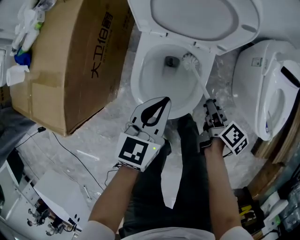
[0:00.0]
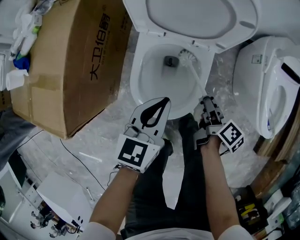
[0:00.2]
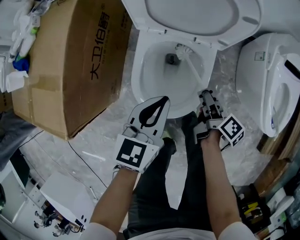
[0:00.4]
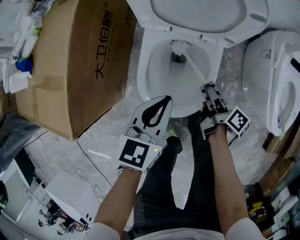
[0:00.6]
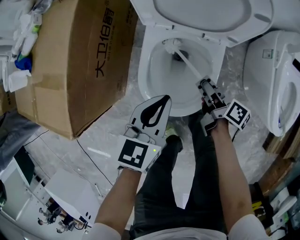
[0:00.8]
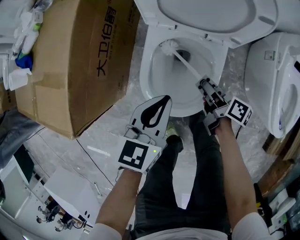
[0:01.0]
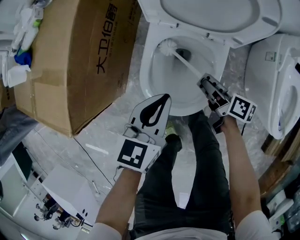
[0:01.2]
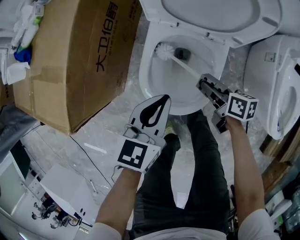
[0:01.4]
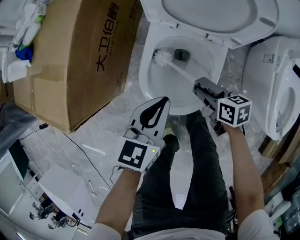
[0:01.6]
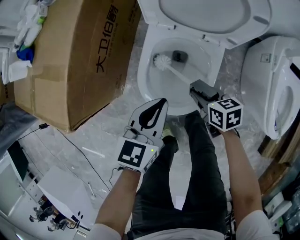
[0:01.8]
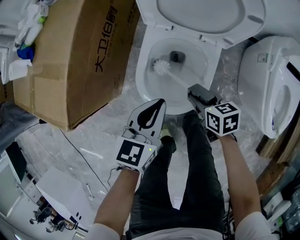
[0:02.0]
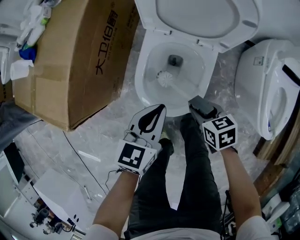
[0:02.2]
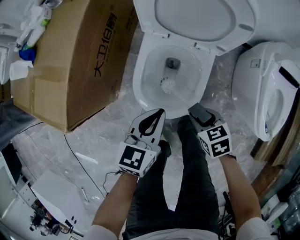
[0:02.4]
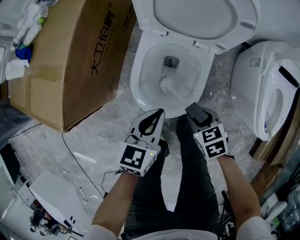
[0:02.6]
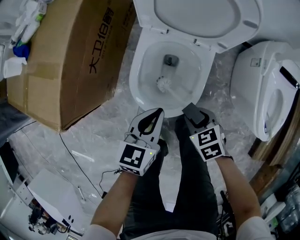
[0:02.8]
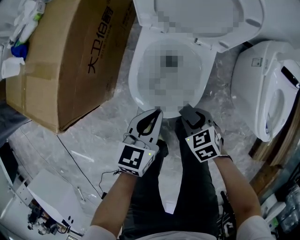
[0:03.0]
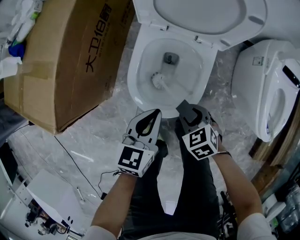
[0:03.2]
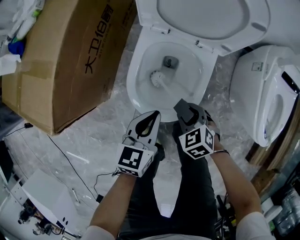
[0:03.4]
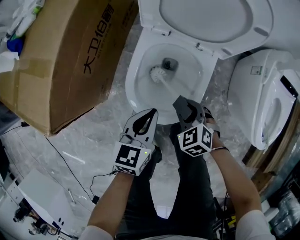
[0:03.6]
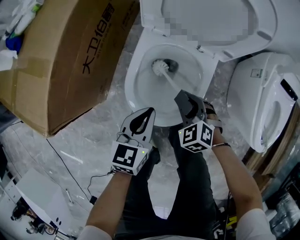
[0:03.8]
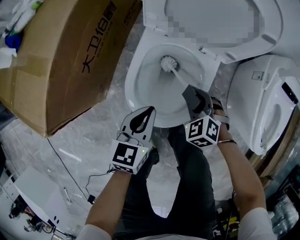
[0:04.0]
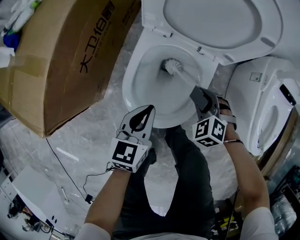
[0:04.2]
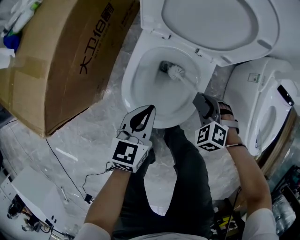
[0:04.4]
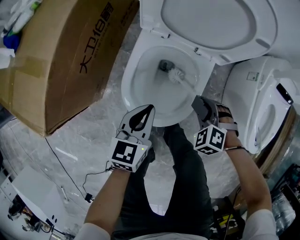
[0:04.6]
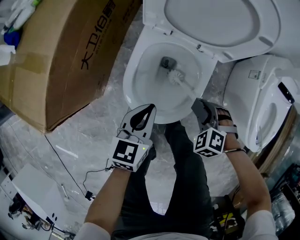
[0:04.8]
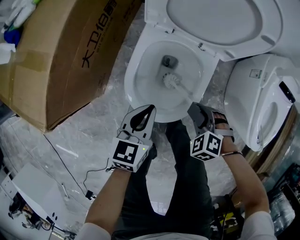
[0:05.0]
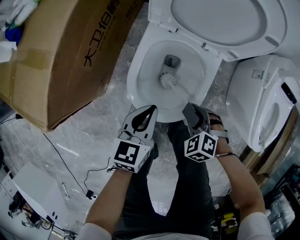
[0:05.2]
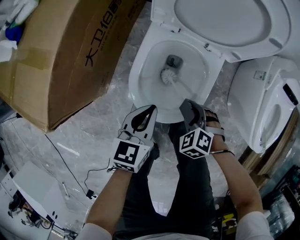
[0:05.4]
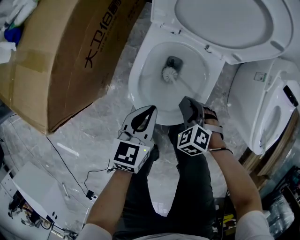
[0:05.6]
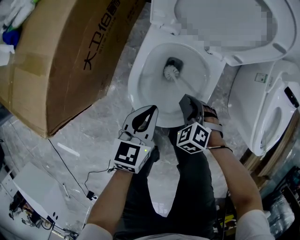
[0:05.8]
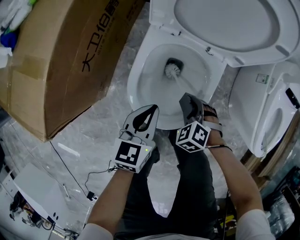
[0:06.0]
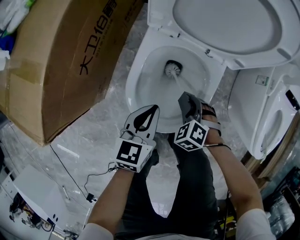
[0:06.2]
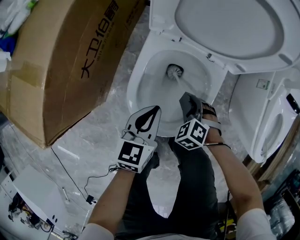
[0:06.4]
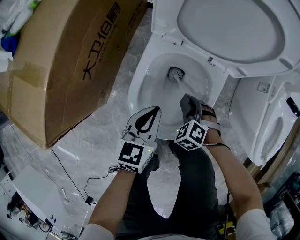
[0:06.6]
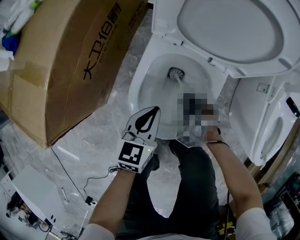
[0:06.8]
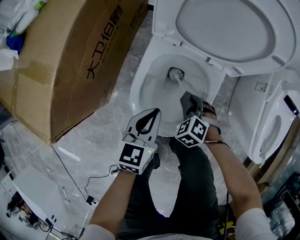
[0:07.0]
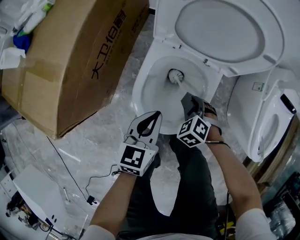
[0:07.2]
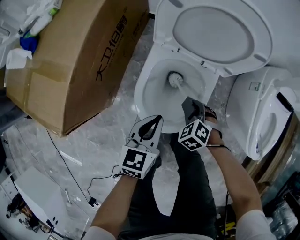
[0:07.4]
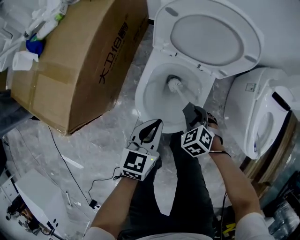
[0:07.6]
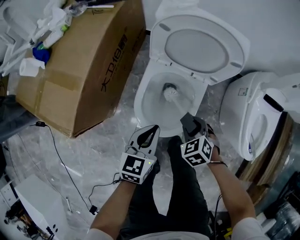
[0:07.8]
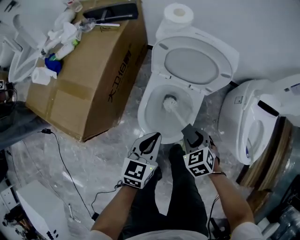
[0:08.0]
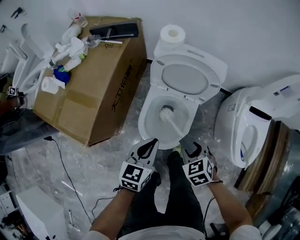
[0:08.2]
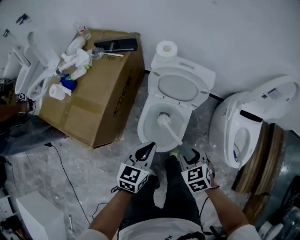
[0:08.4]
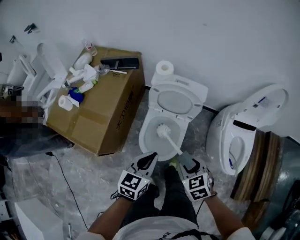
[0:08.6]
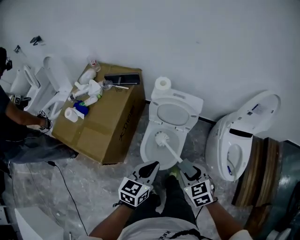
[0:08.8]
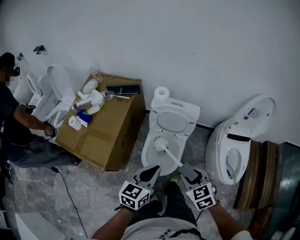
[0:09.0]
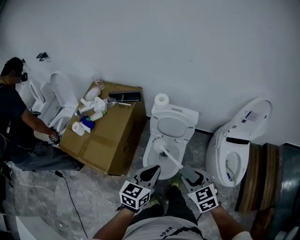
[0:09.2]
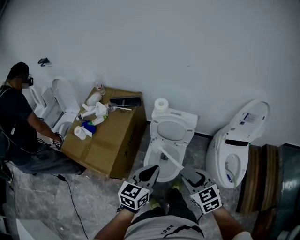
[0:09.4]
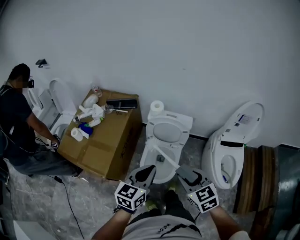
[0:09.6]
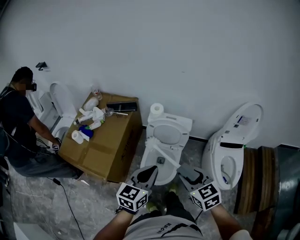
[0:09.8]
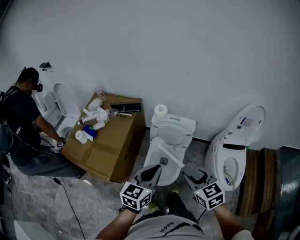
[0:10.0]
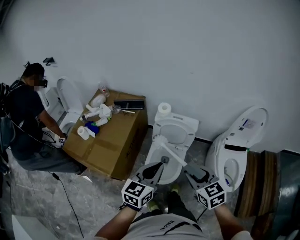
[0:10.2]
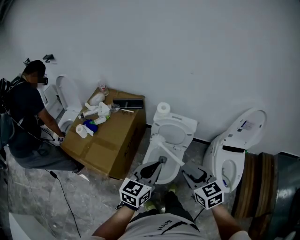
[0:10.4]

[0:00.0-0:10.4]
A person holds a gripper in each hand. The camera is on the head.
0:00.0 to 0:01.4: The right gripper shifts about 10 cm to the left, forward and downward, and swivels approximately 40 degrees.
0:01.4 to 0:03.0: The right gripper shifts roughly 10 cm backward, and rolls counterclockwise, seen from behind, by about 50 degrees, while the left gripper is displaced backward by some 5 cm.
0:03.0 to 0:04.4: The left gripper ends up about 5 cm from where it was; the right gripper goes roughly 10 cm forward and to the right, and swivels approximately 40 degrees.
0:04.4 to 0:06.0: The right gripper moves to the left and downward, some 10 cm.
0:06.0 to 0:07.4: The grippers both shift upward by some 5 cm.
0:07.4 to 0:09.0: The two grippers go some 50 cm upward. The right gripper swivels some 40 degrees.
0:09.0 to 0:10.4: Both grippers travel together upward, some 10 cm.

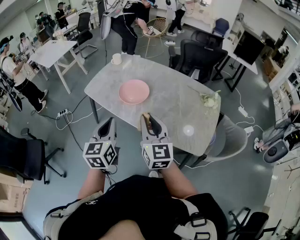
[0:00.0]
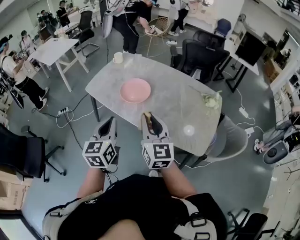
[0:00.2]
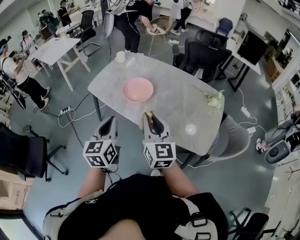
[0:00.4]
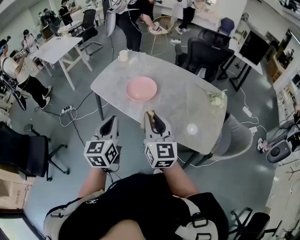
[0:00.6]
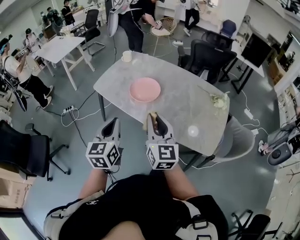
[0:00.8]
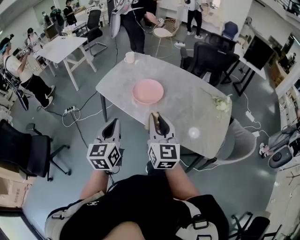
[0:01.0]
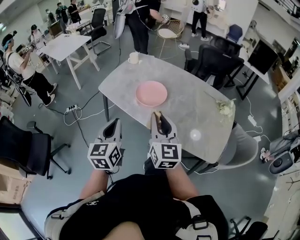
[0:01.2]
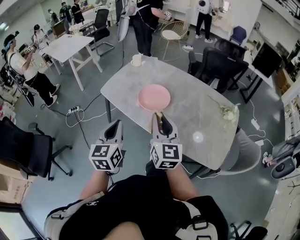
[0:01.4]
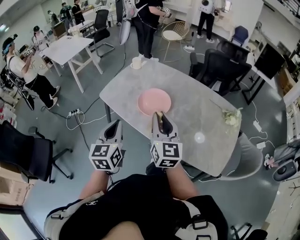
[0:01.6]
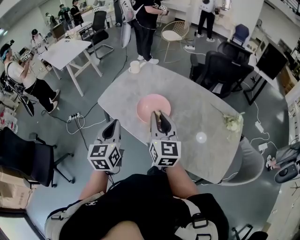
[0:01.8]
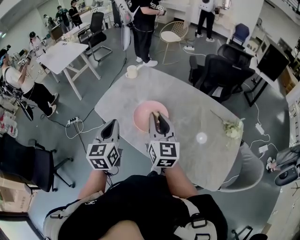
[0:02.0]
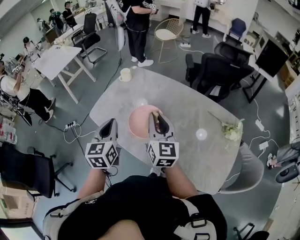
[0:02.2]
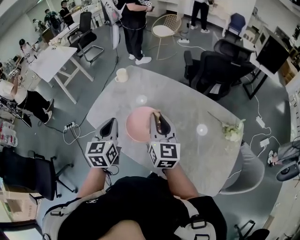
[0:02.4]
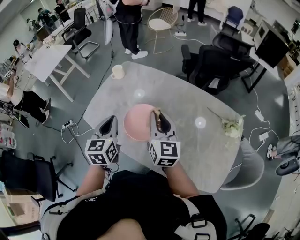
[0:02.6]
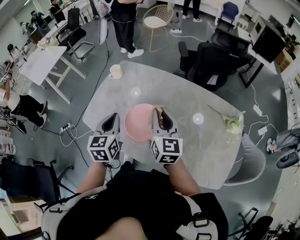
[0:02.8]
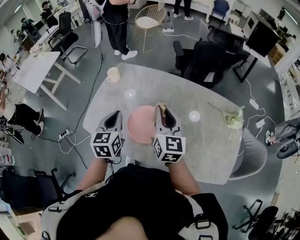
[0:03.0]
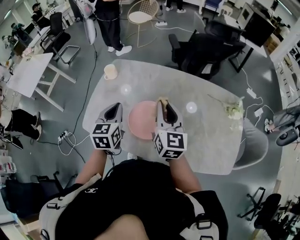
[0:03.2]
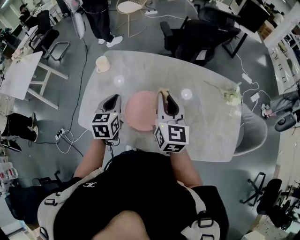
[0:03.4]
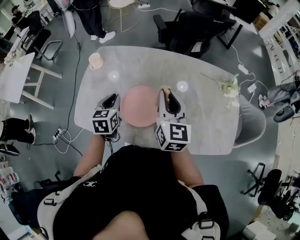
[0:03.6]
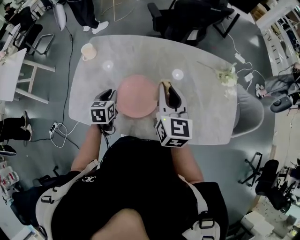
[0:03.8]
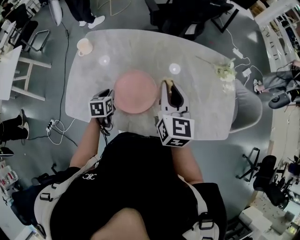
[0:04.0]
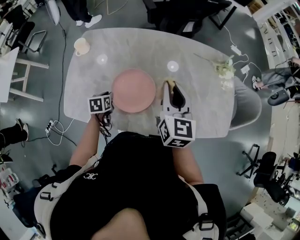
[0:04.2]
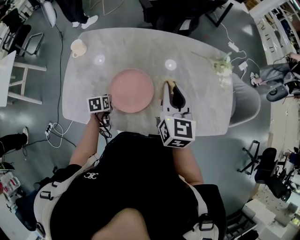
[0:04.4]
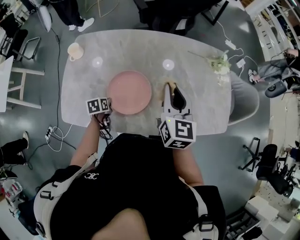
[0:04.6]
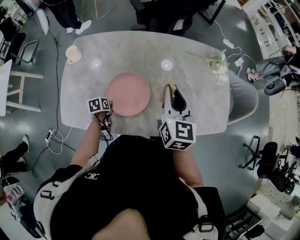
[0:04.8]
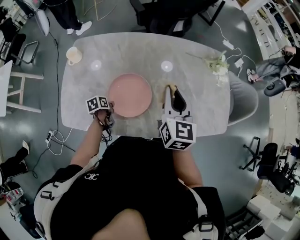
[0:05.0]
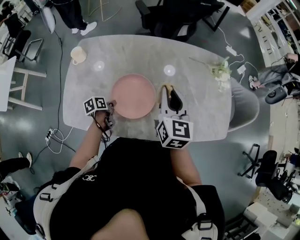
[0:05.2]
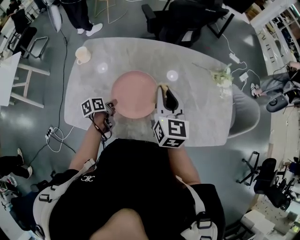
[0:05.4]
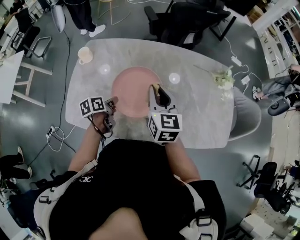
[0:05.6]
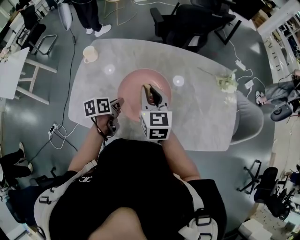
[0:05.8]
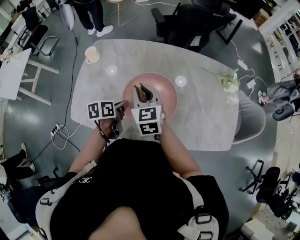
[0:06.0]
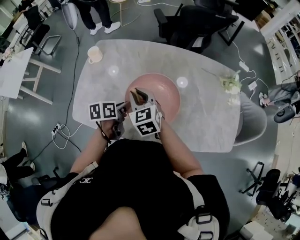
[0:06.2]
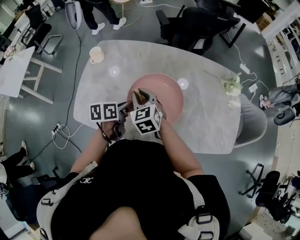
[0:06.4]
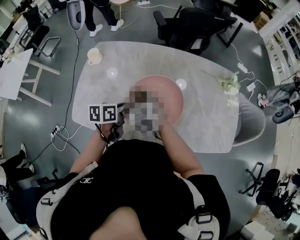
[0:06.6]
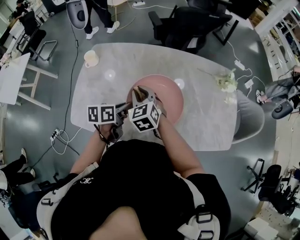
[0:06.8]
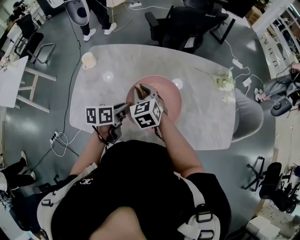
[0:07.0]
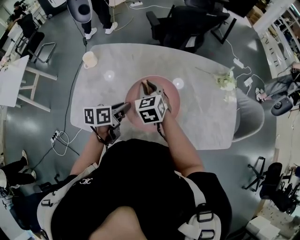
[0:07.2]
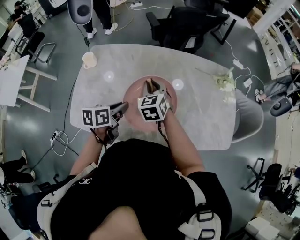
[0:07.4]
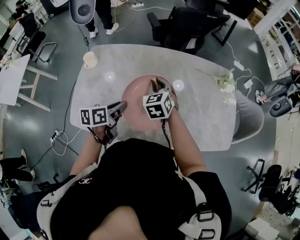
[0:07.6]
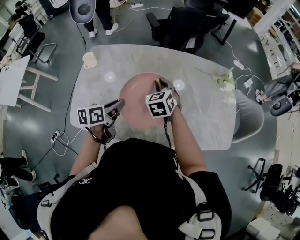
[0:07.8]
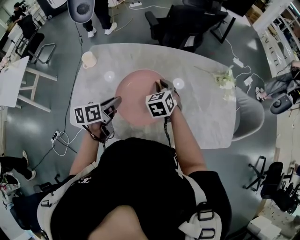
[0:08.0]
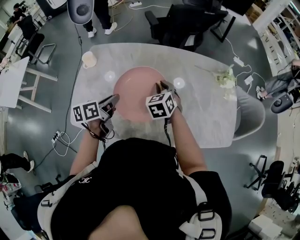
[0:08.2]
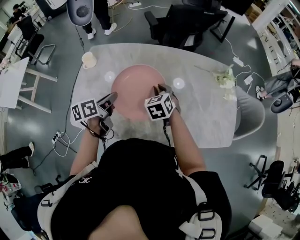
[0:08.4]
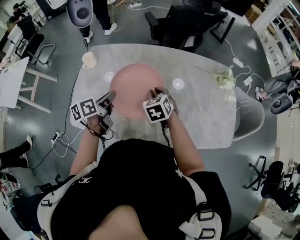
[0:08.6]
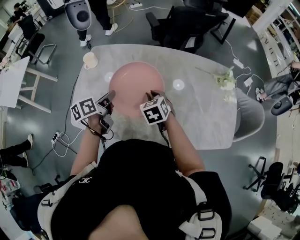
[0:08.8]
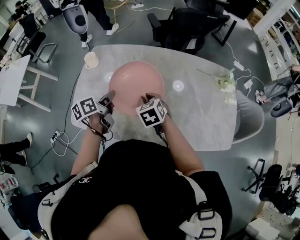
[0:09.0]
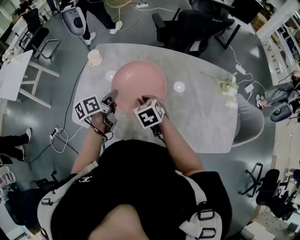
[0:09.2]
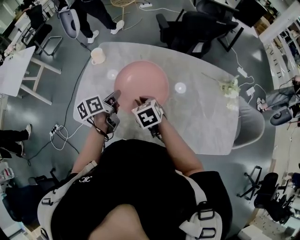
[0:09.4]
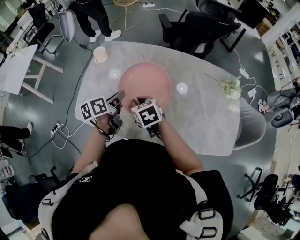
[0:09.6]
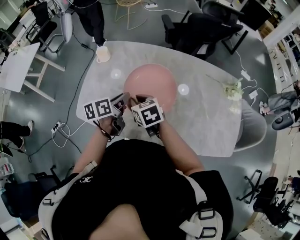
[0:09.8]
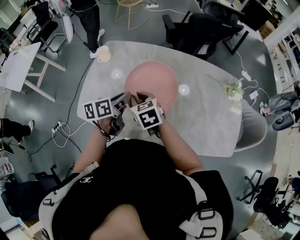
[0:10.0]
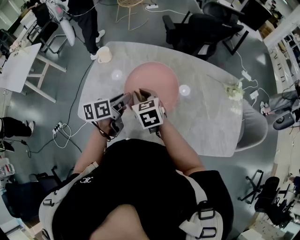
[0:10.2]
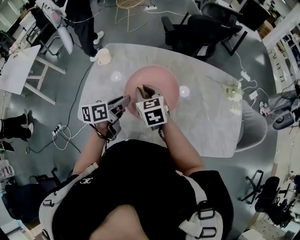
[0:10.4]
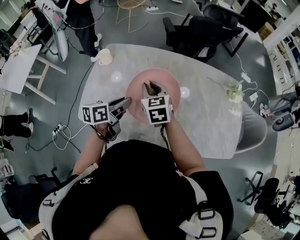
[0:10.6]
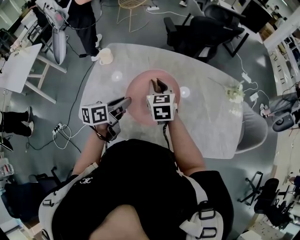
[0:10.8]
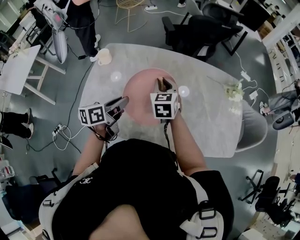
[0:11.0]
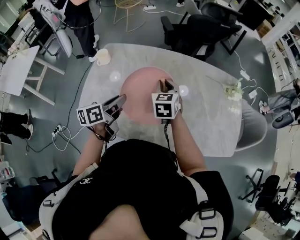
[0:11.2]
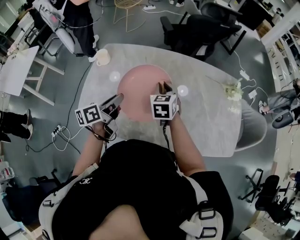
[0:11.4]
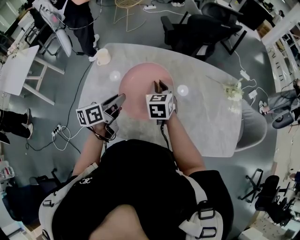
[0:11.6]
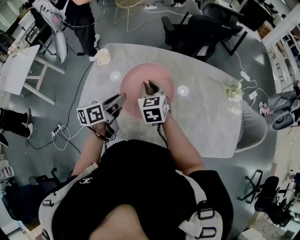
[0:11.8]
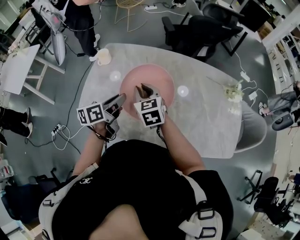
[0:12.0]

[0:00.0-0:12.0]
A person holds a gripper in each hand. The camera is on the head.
0:00.0 to 0:01.6: The grippers both shift forward and to the left by approximately 15 cm.
0:01.6 to 0:03.0: Both grippers move forward, some 25 cm.
0:03.0 to 0:04.4: The left gripper shifts approximately 30 cm downward, and tips its fingers downward by about 40 degrees, while the right gripper goes approximately 5 cm to the right, and swivels roughly 20 degrees.
0:04.4 to 0:06.0: The right gripper travels to the left and downward by some 15 cm, and swivels some 30 degrees. Meanwhile the left gripper shifts roughly 15 cm upward and to the right, and rotates roughly 30 degrees.
0:06.0 to 0:07.6: The left gripper is displaced upward by about 5 cm, while the right gripper shifts approximately 10 cm forward and to the right, and swivels approximately 20 degrees.
0:07.6 to 0:09.0: The left gripper heads to the left, covering approximately 10 cm, and changes its angle by approximately 20 degrees. The right gripper goes approximately 10 cm backward and downward.
0:09.0 to 0:10.4: The left gripper shifts by roughly 5 cm; the right gripper moves upward and to the left, some 10 cm.
0:10.4 to 0:12.0: The right gripper moves about 10 cm to the right and comes back.

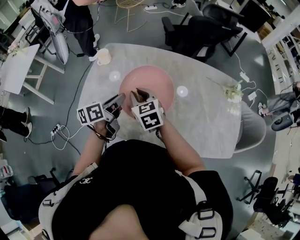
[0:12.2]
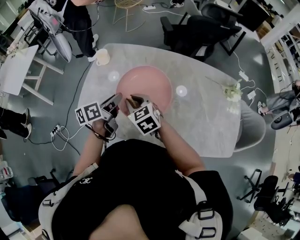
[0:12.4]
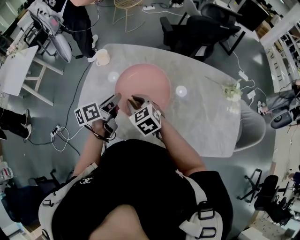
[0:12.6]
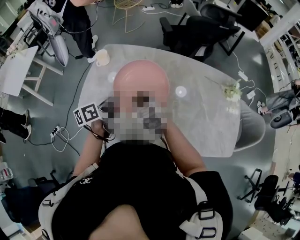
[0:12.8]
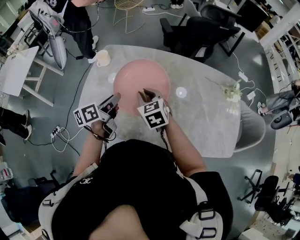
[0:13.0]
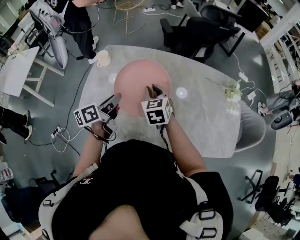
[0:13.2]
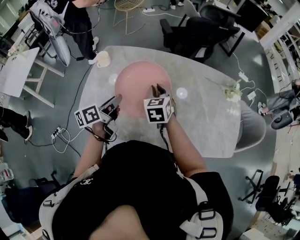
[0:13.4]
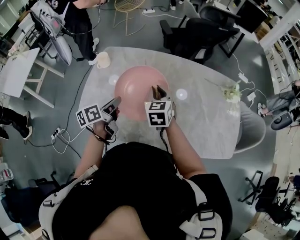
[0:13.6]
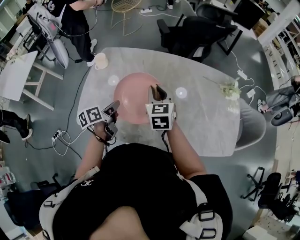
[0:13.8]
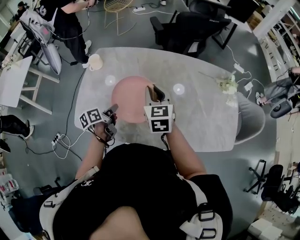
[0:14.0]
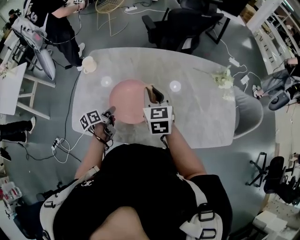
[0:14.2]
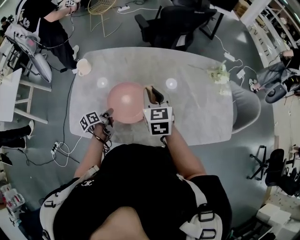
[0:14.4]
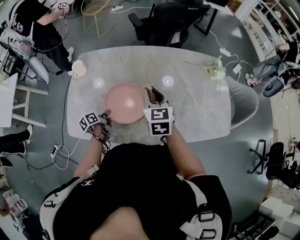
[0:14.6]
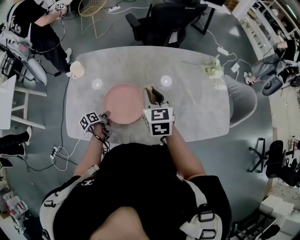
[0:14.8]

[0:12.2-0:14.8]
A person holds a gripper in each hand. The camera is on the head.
0:12.2 to 0:13.4: The right gripper heads to the right, covering roughly 10 cm, and changes its angle by about 20 degrees.
0:13.4 to 0:14.8: The right gripper moves to the right, roughly 10 cm. Meanwhile the left gripper goes approximately 25 cm downward, and changes its angle by about 30 degrees.
